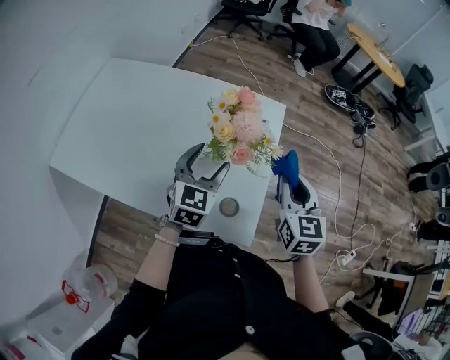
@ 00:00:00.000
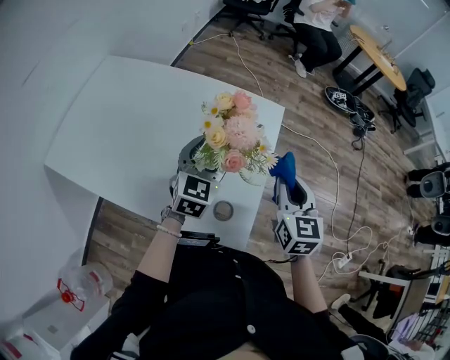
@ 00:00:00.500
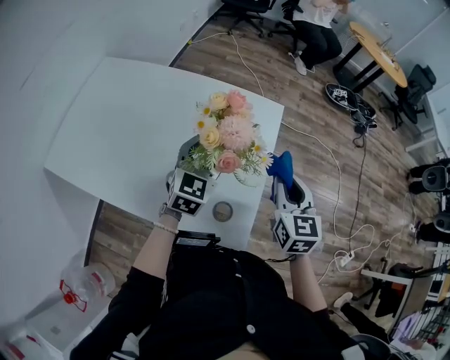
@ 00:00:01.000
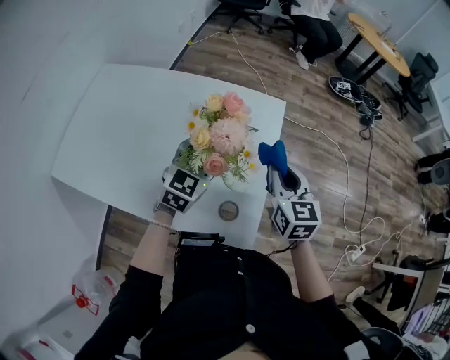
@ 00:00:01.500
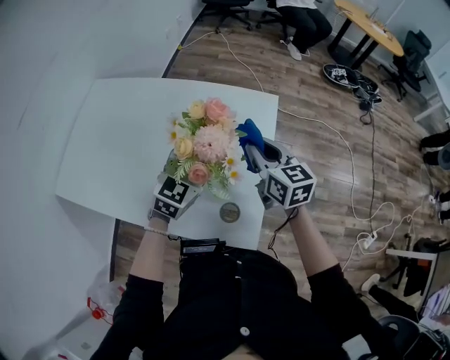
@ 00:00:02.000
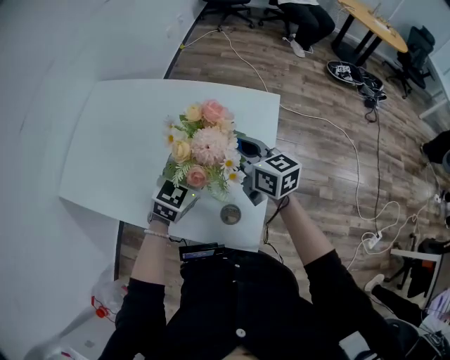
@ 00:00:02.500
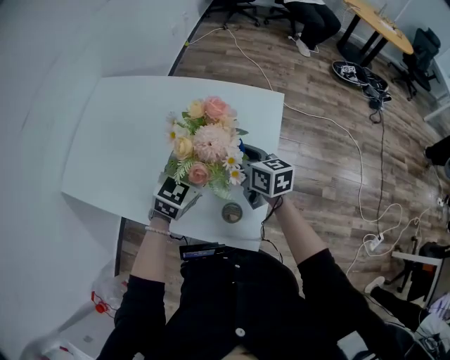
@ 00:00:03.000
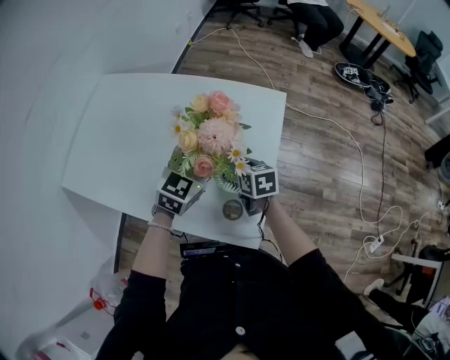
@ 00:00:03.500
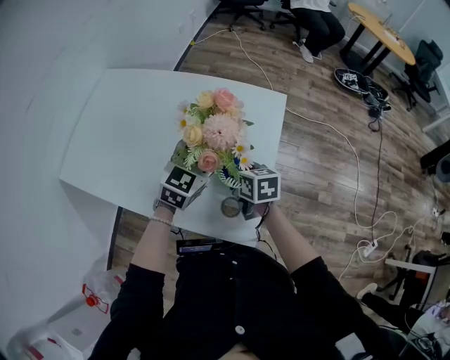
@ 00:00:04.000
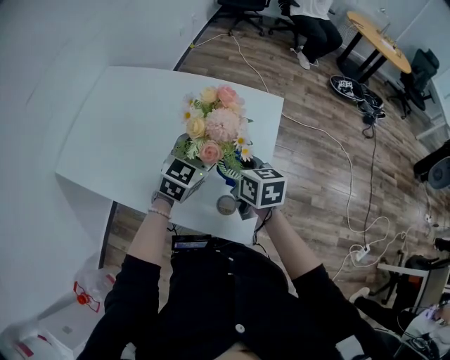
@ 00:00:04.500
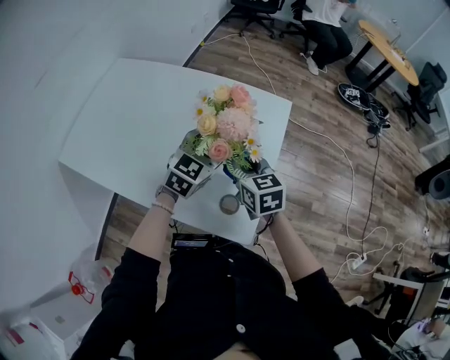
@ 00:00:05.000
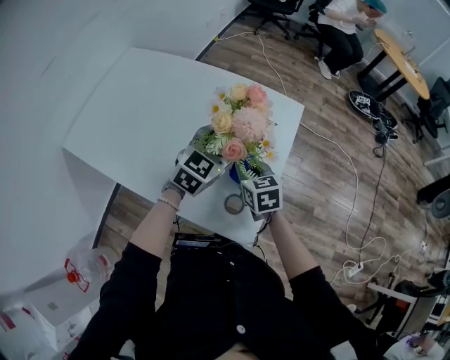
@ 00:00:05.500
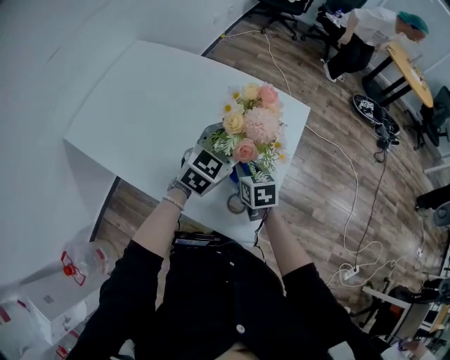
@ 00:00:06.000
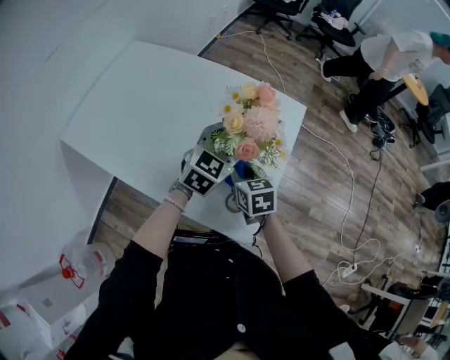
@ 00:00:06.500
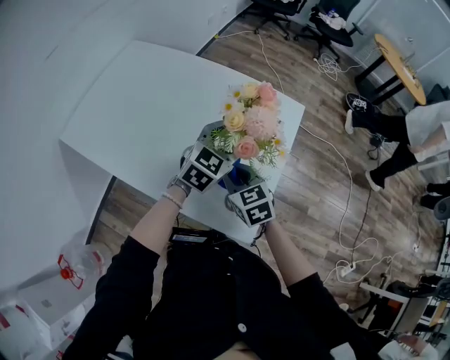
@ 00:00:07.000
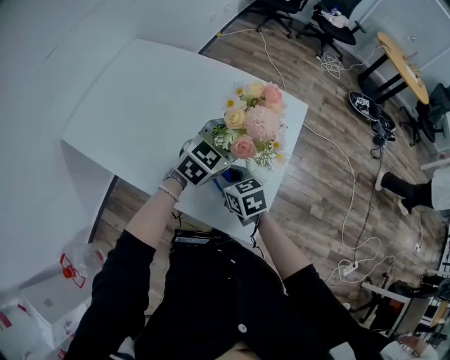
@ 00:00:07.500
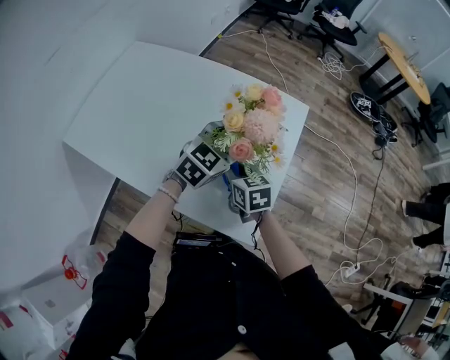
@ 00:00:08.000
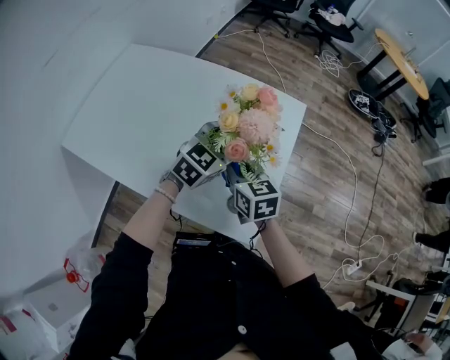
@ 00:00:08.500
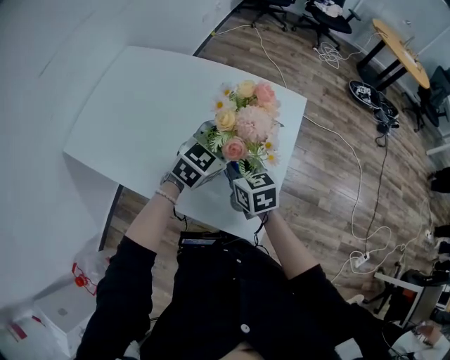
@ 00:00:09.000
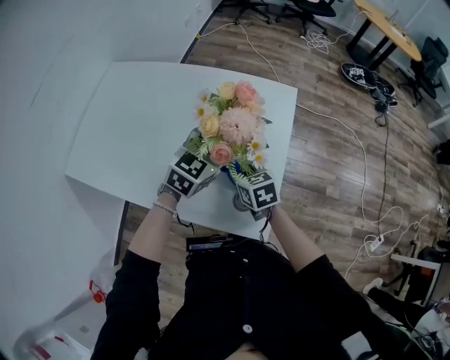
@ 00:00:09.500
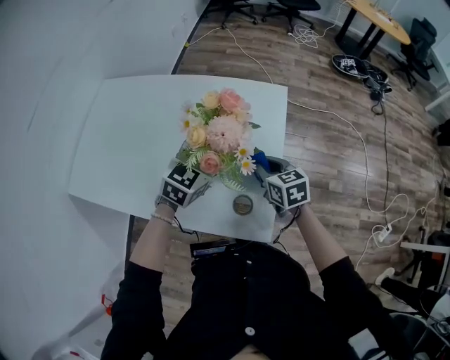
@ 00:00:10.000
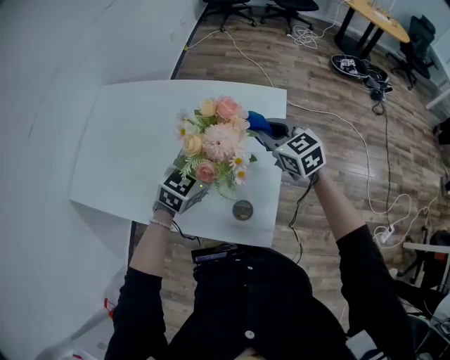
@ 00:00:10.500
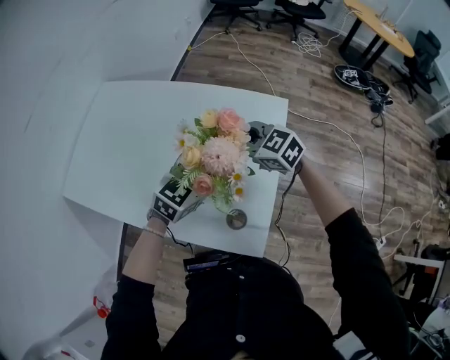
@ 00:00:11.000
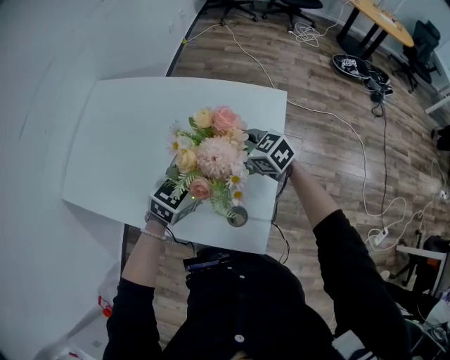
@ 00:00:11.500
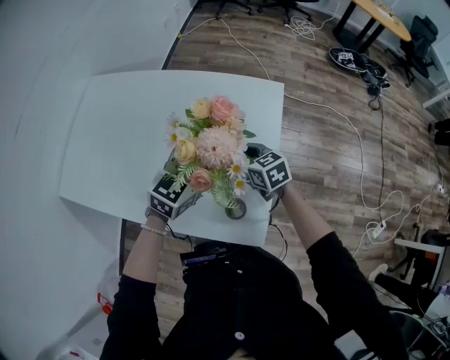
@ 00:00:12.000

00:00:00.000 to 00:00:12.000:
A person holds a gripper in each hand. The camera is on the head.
00:00:00.000 to 00:00:02.000: The right gripper shifts about 10 cm forward and to the left, and changes its angle by some 20 degrees.
00:00:02.000 to 00:00:04.000: The right gripper shifts some 15 cm downward and to the left, and rotates some 20 degrees.
00:00:04.000 to 00:00:06.000: The right gripper travels upward and back again, some 5 cm each way.
00:00:08.000 to 00:00:10.000: The right gripper is displaced to the right by about 10 cm.
00:00:10.000 to 00:00:12.000: The right gripper shifts roughly 5 cm forward, and reaches about 10 cm upward, then returns.

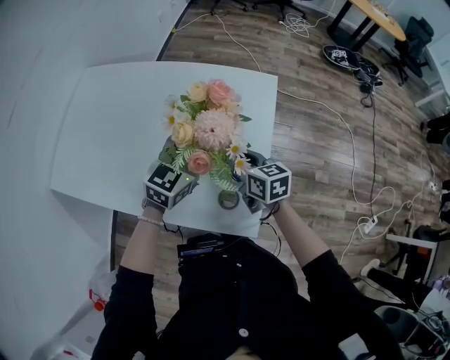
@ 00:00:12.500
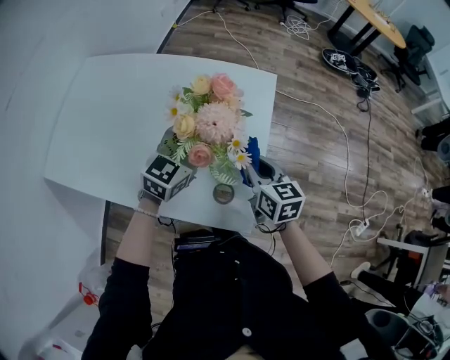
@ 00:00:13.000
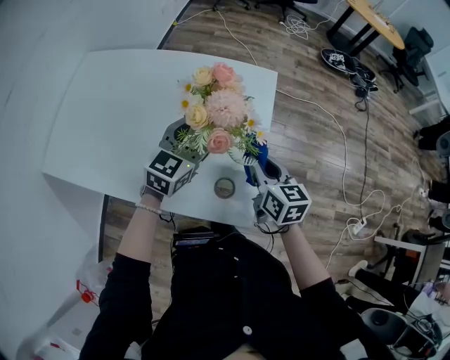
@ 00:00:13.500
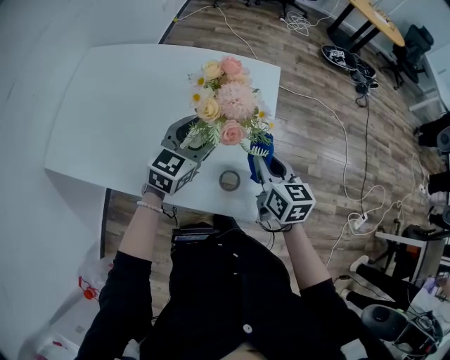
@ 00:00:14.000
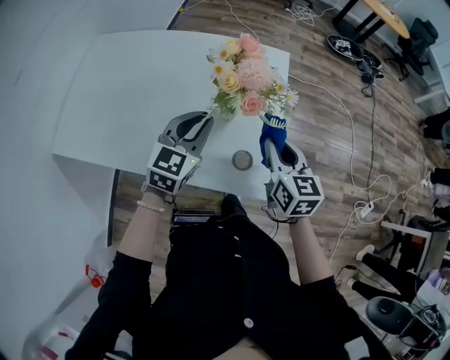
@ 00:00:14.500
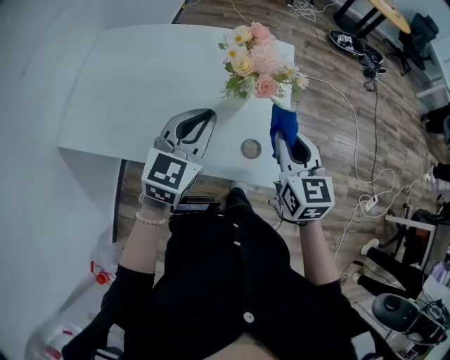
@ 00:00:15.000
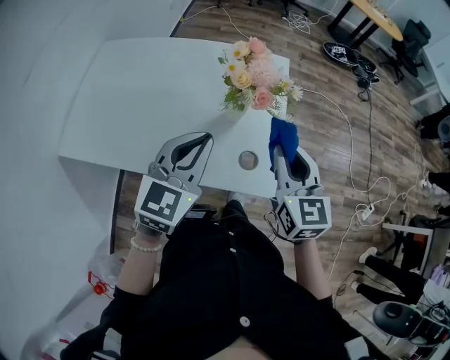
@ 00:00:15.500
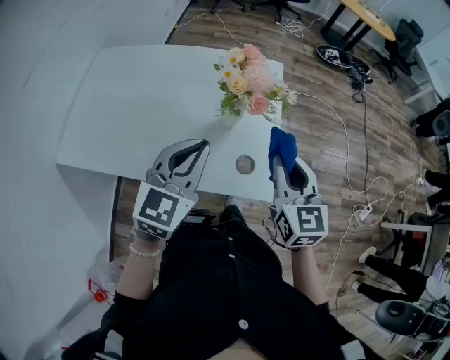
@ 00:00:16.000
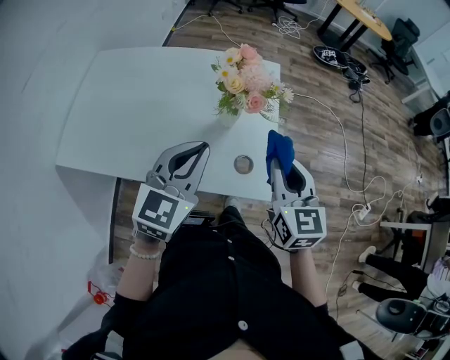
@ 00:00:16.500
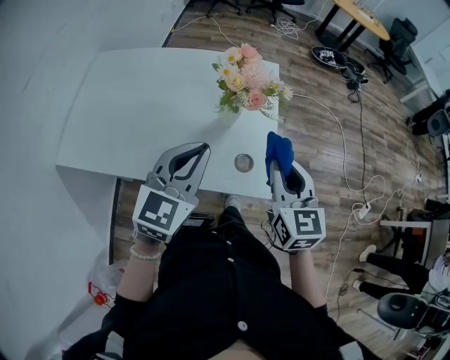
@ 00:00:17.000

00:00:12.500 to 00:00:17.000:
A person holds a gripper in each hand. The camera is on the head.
00:00:12.500 to 00:00:14.500: The right gripper travels backward, upward and to the right by roughly 15 cm, and swivels approximately 30 degrees. The left gripper moves backward, some 10 cm, and closes.
00:00:14.500 to 00:00:17.000: Both grippers travel together backward and upward, roughly 15 cm.

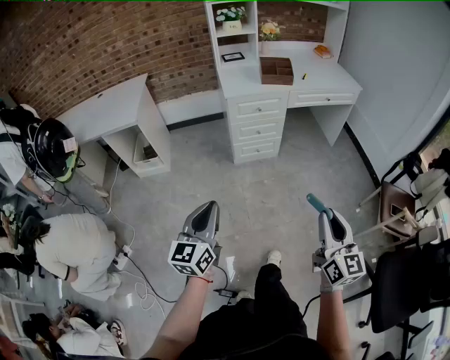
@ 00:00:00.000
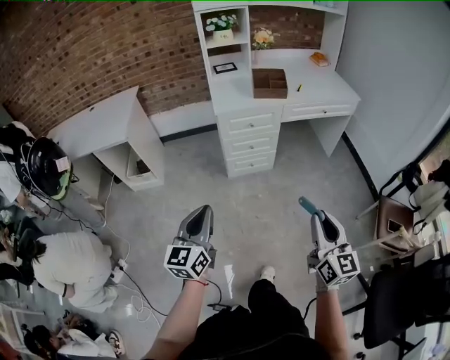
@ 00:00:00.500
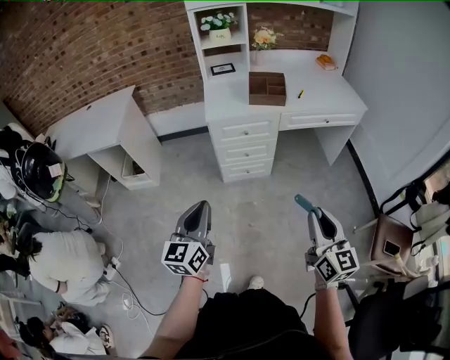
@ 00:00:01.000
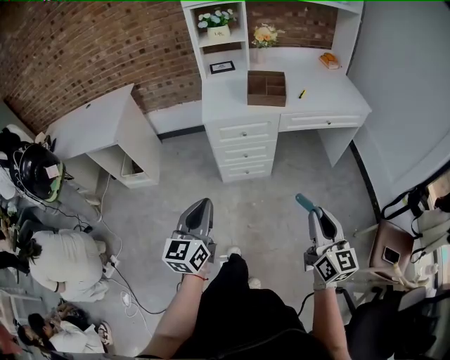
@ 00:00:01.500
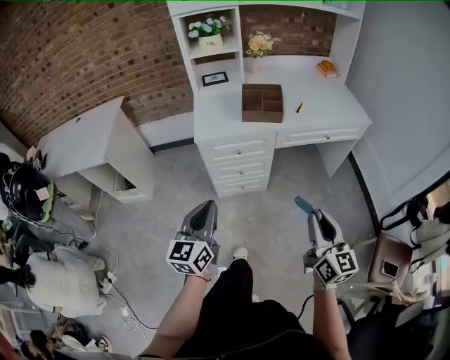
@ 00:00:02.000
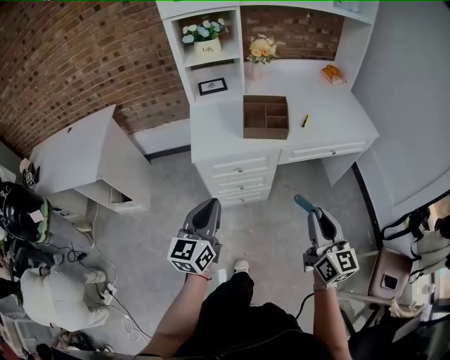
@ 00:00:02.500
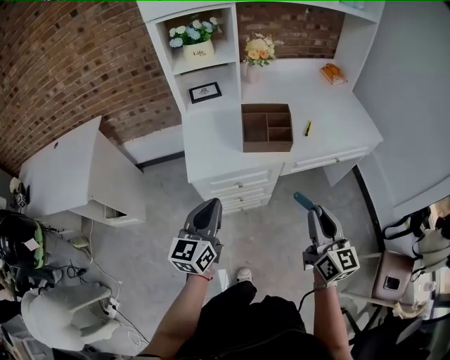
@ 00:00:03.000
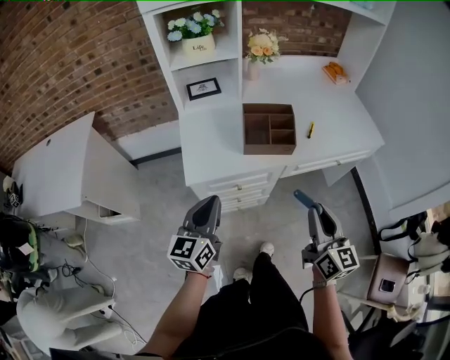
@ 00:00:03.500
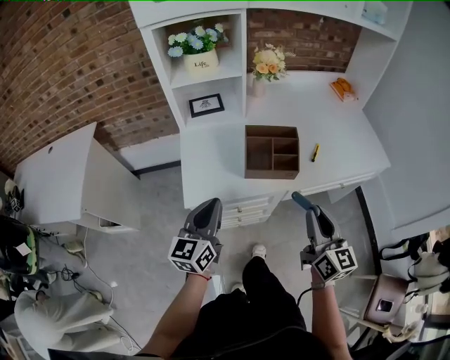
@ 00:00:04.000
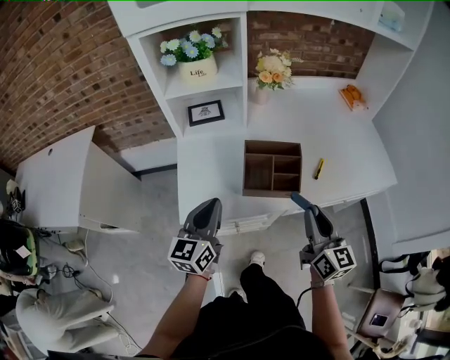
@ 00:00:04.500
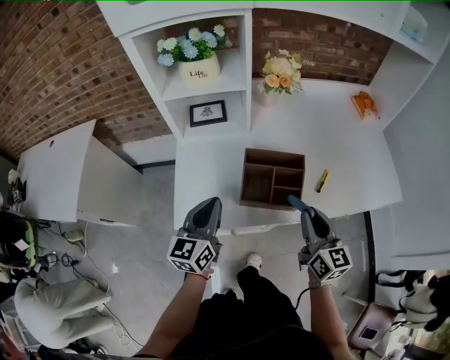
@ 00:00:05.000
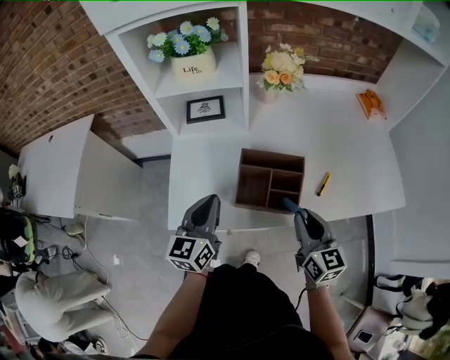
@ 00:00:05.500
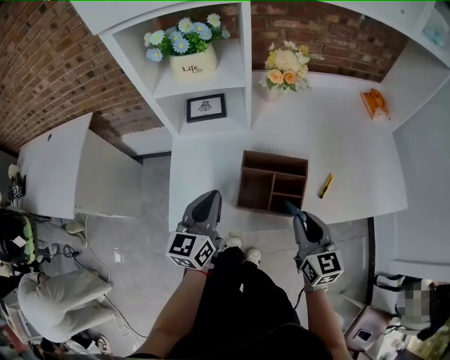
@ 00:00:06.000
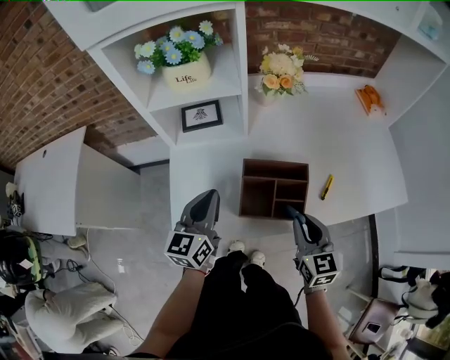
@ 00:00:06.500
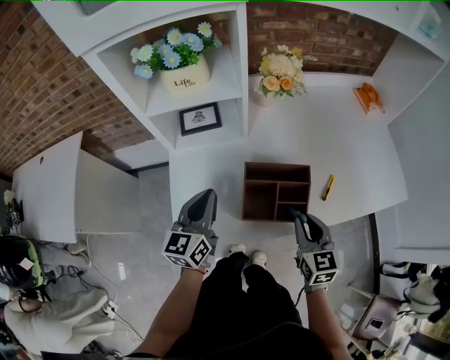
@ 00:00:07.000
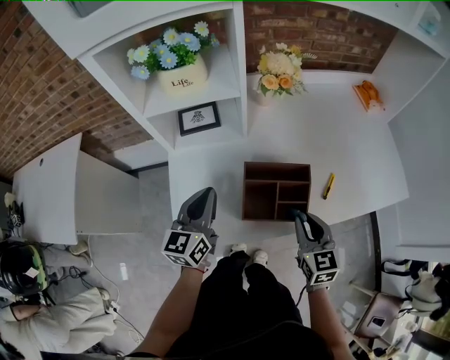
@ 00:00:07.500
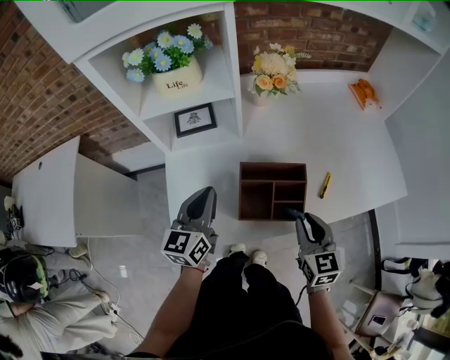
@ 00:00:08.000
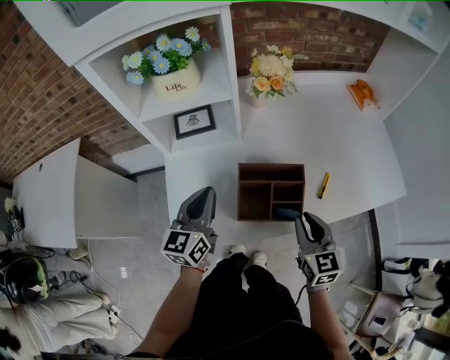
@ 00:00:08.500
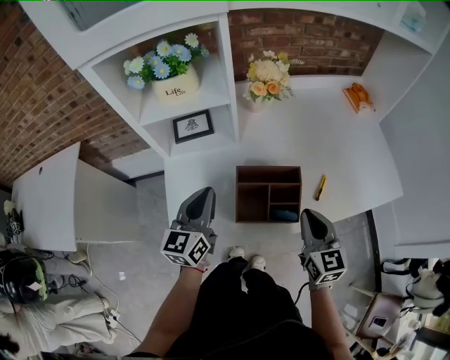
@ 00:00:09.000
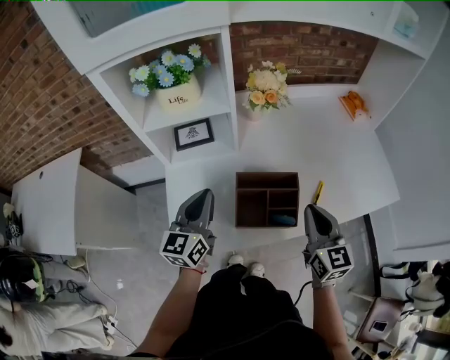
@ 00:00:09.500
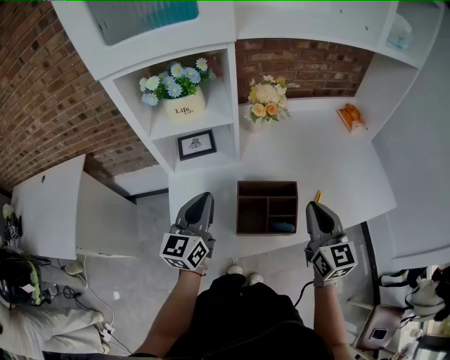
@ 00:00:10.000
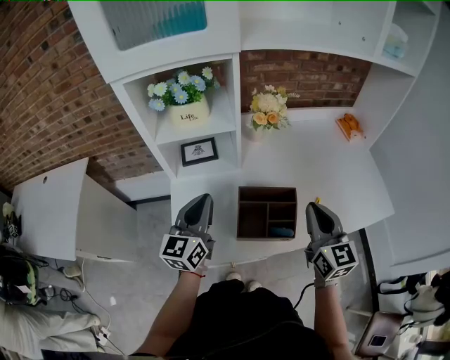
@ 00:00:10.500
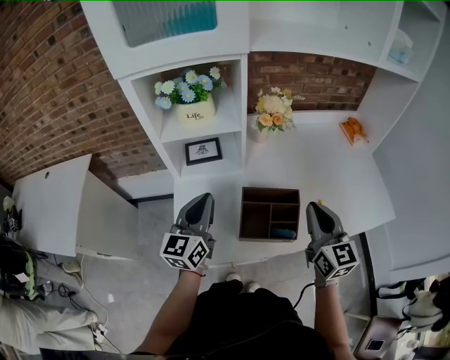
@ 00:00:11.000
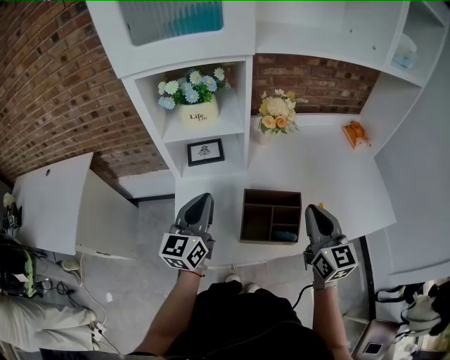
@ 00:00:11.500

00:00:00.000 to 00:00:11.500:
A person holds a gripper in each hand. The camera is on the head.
00:00:00.000 to 00:00:02.000: The right gripper travels forward by approximately 35 cm, while the left gripper shifts roughly 35 cm forward and to the right.
00:00:02.000 to 00:00:04.000: Both grippers move forward, about 35 cm.
00:00:04.000 to 00:00:06.000: The left gripper is displaced forward by roughly 15 cm; the right gripper travels forward and downward by roughly 20 cm, and rotates roughly 20 degrees.
00:00:06.000 to 00:00:07.500: The left gripper travels forward by some 5 cm.
00:00:07.500 to 00:00:09.500: The right gripper goes approximately 10 cm upward.
00:00:09.500 to 00:00:11.500: The right gripper travels upward by roughly 5 cm.
